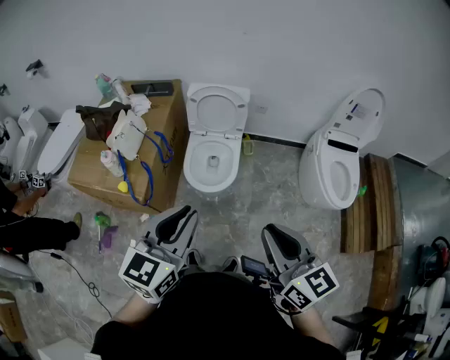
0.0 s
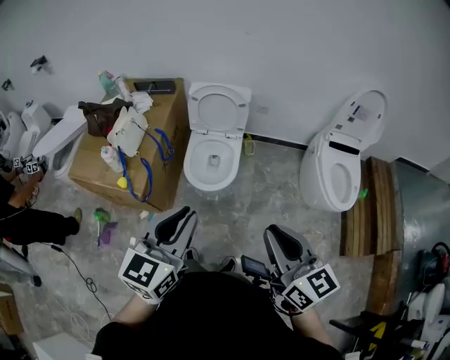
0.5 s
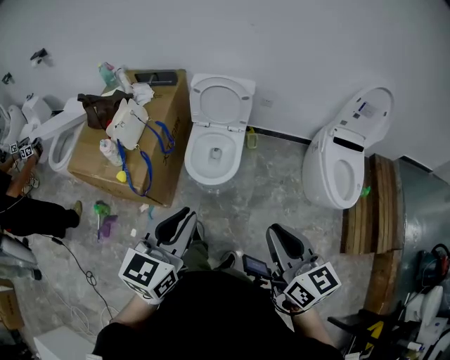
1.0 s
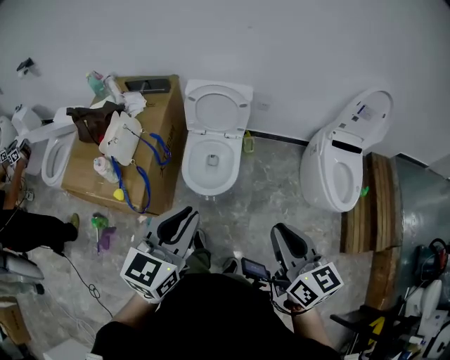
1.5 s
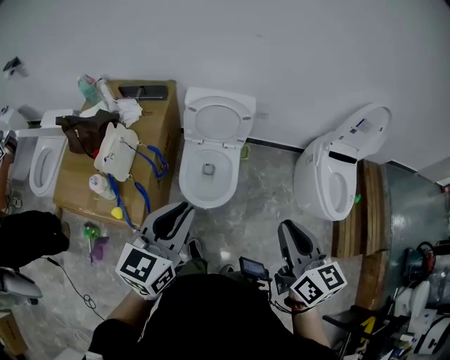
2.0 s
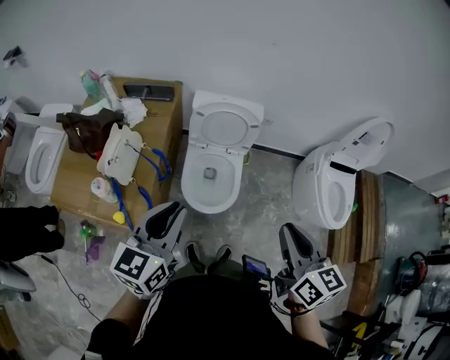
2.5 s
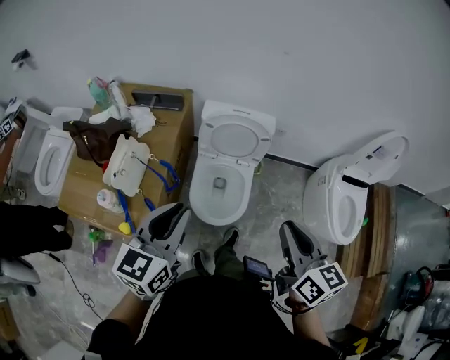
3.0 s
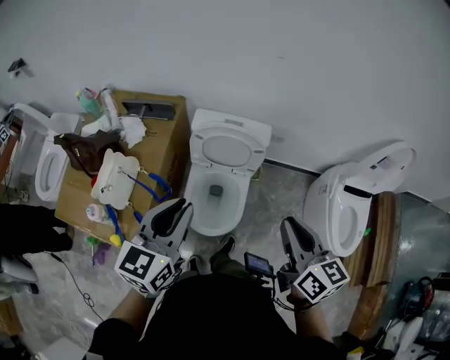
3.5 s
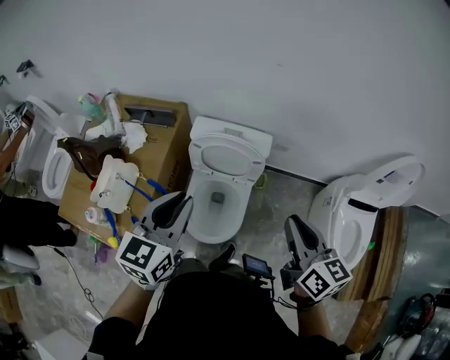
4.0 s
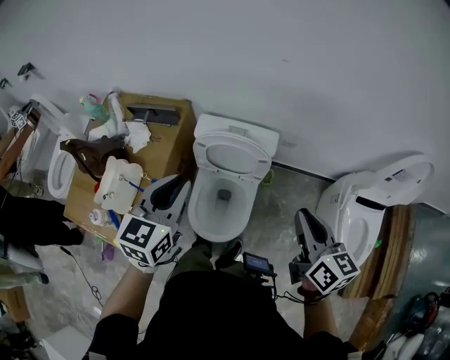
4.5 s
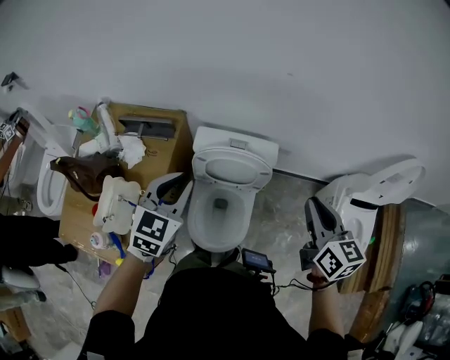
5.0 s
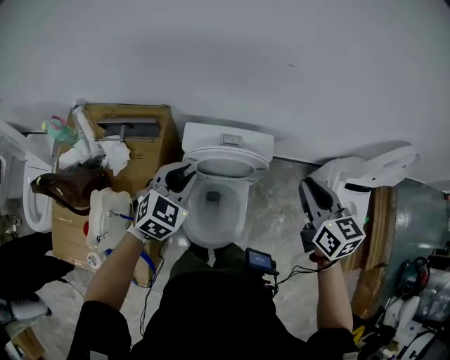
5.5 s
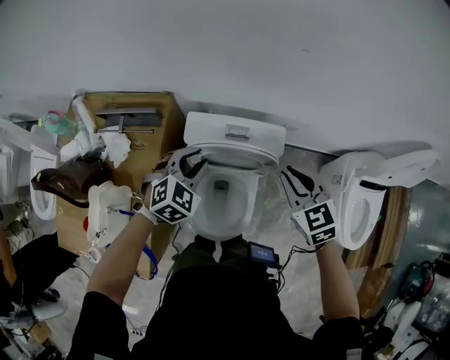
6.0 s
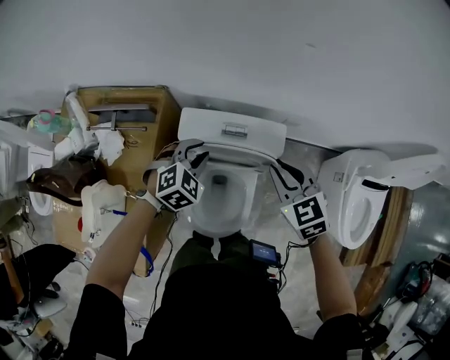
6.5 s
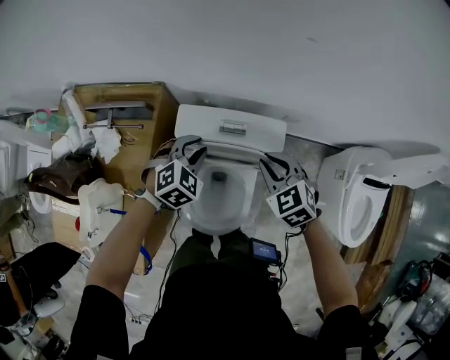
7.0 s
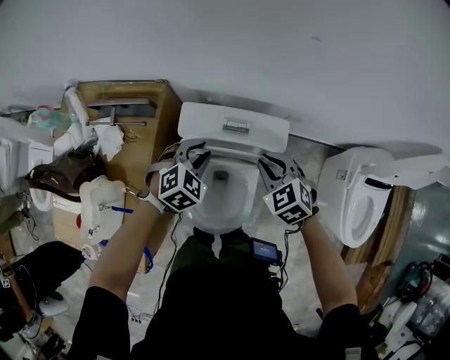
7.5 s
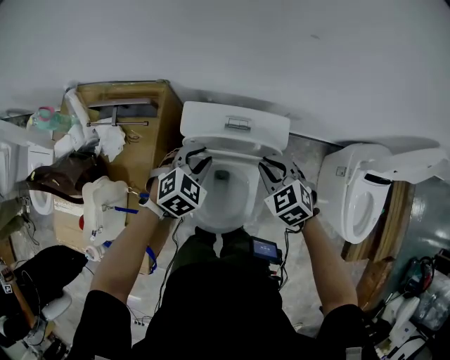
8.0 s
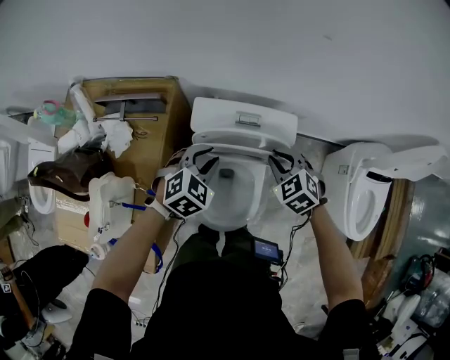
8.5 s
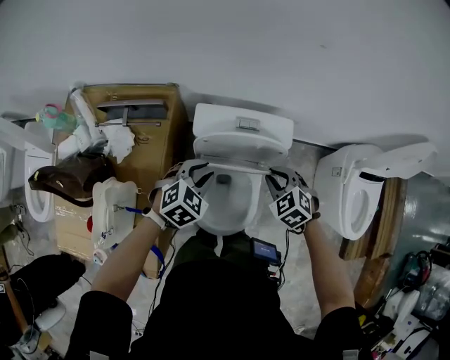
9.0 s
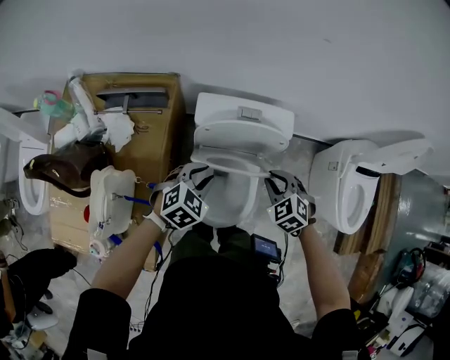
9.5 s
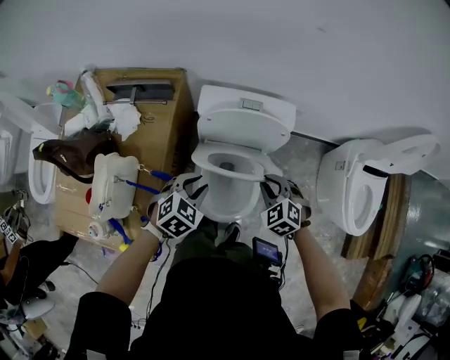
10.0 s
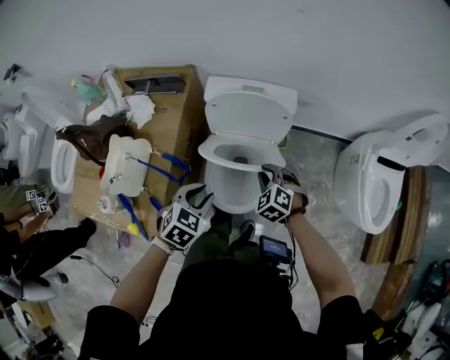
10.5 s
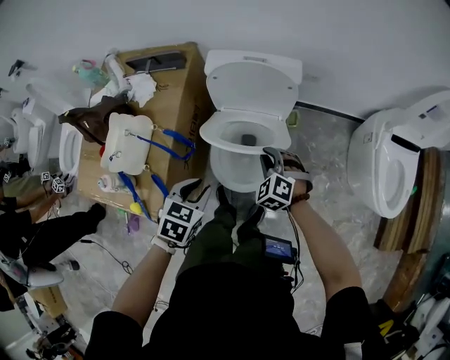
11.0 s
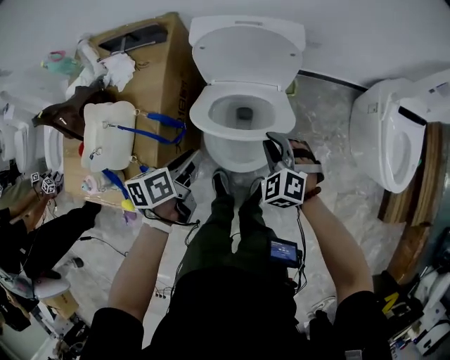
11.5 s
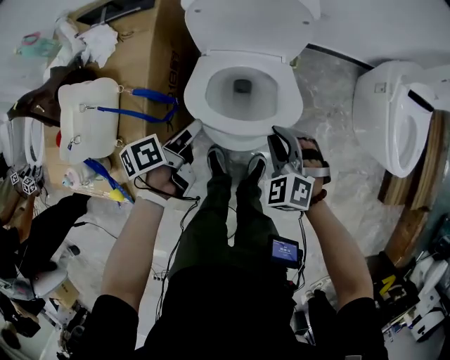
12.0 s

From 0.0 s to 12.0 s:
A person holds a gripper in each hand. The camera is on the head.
From 0.0 s to 2.0 s: The right gripper travels forward by approximately 20 cm. Meanwhile the left gripper heads forward and to the left, covering some 20 cm.
From 2.0 s to 4.0 s: The two grippers go about 25 cm forward.
From 4.0 s to 6.0 s: Both grippers travel together forward and downward, about 30 cm. The right gripper swivels roughly 40 degrees. The left gripper turns by about 50 degrees.
From 6.0 s to 8.0 s: The left gripper is displaced downward by some 5 cm, while the right gripper is displaced downward by roughly 10 cm.
From 8.0 s to 10.0 s: The grippers both shift backward by roughly 15 cm.
From 10.0 s to 12.0 s: The right gripper travels backward and downward by about 15 cm. The left gripper is displaced downward and backward by some 15 cm, and rolls counterclockwise, seen from behind, by roughly 80 degrees.

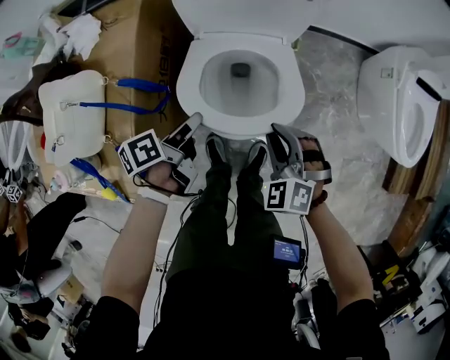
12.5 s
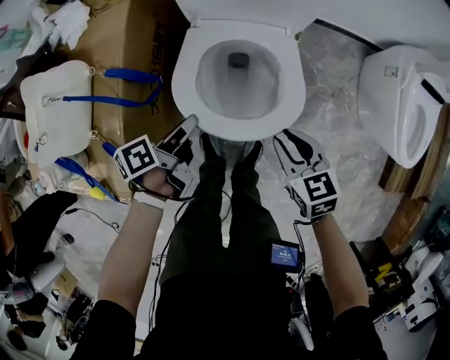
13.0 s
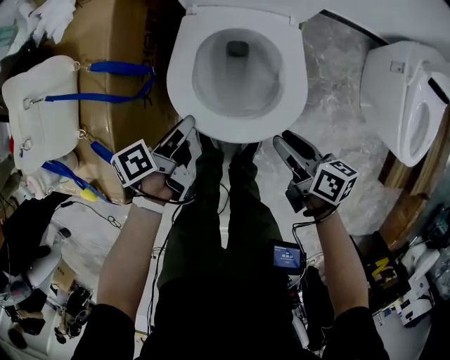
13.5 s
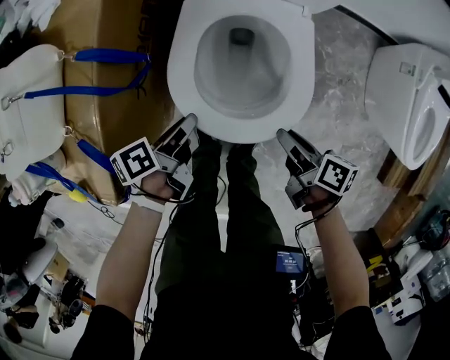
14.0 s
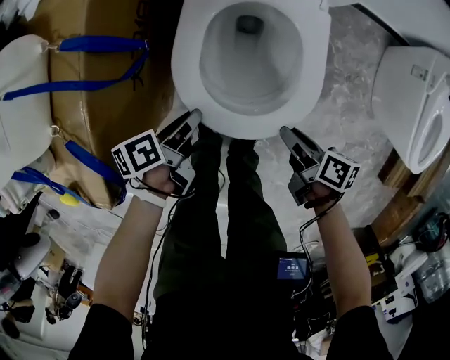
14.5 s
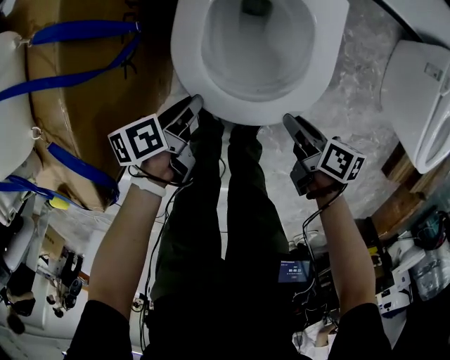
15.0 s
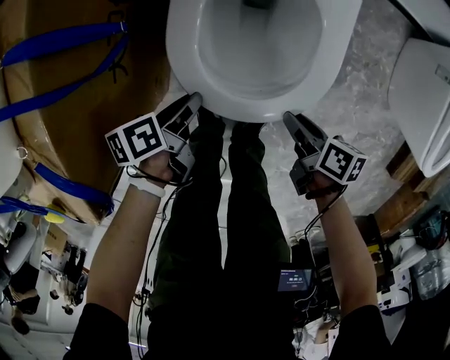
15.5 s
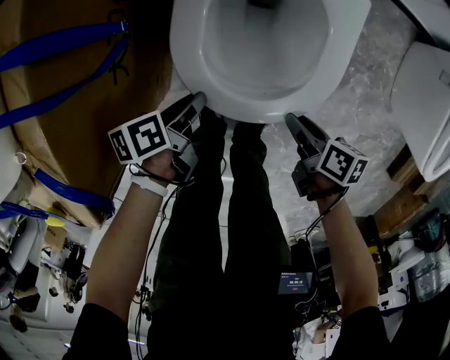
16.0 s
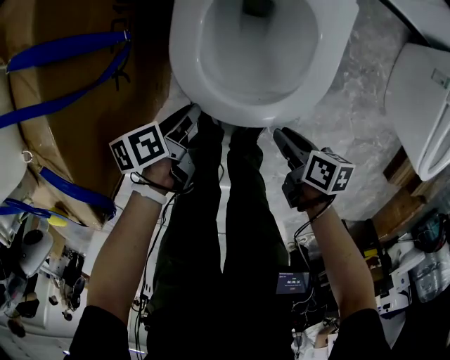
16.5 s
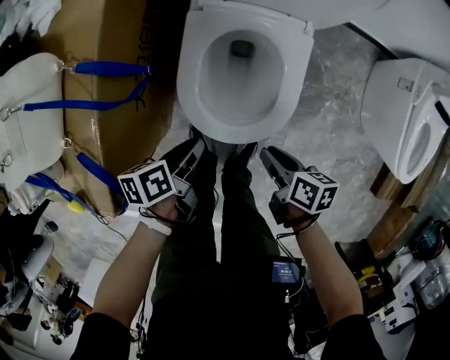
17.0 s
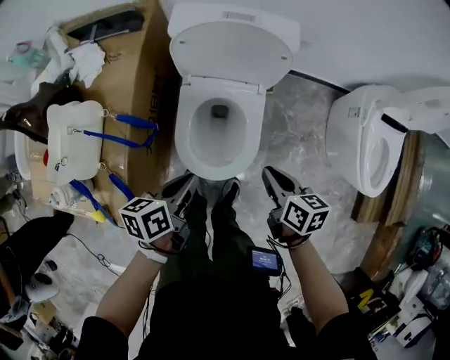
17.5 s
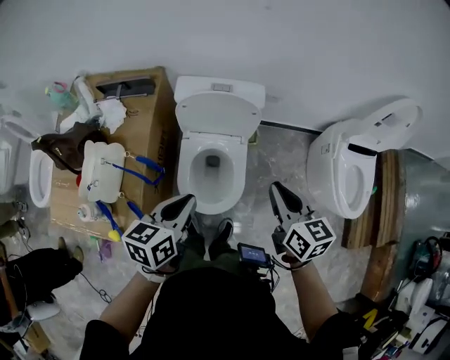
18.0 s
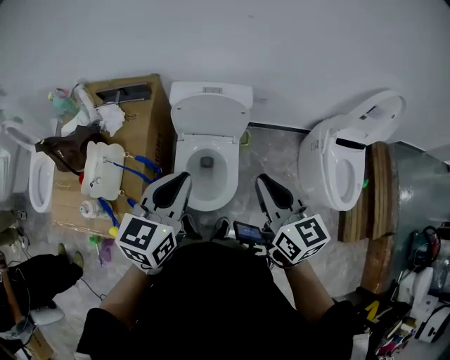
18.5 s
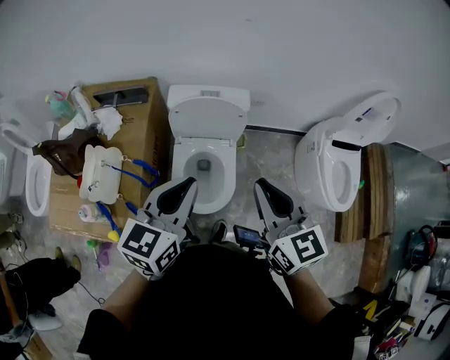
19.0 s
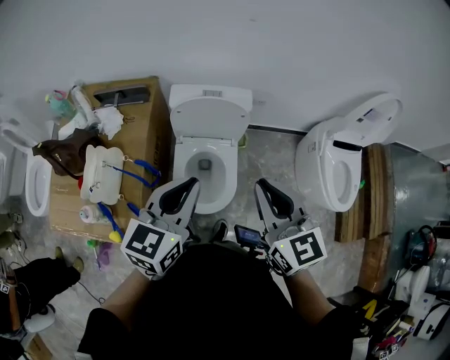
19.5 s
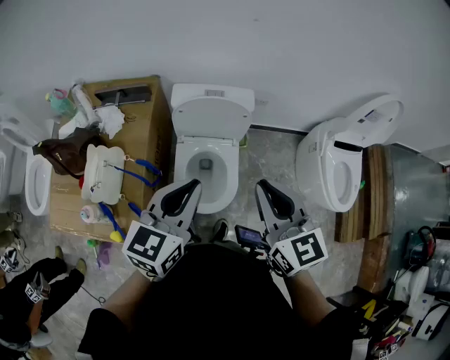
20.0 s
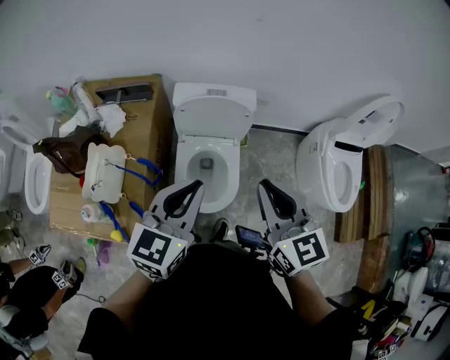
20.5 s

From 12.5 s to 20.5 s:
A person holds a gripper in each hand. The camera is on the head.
From 12.5 s to 14.5 s: The left gripper moves downward and backward, approximately 20 cm. The right gripper moves downward, about 20 cm, and rolls clockwise, seen from behind, by about 100 degrees.
From 14.5 s to 16.5 s: The two grippers go approximately 10 cm downward.
From 16.5 s to 18.5 s: The two grippers go some 70 cm upward. The right gripper tilts its fingers about 40 degrees upward, and closes. Meanwhile the left gripper rolls clockwise, seen from behind, by roughly 70 degrees.
From 18.5 s to 20.5 s: The grippers make only small movements.

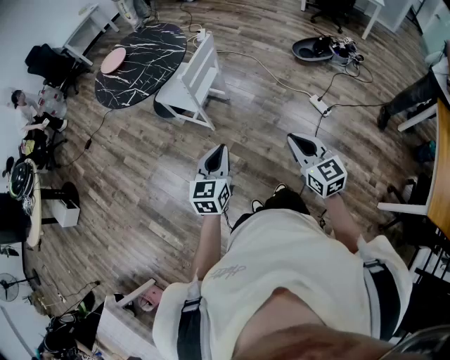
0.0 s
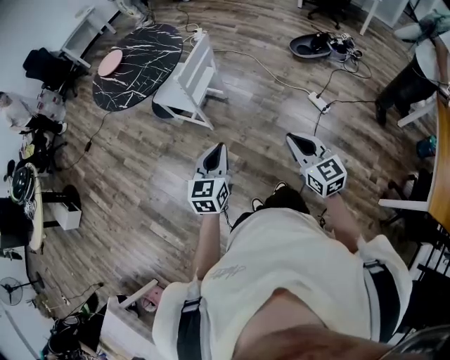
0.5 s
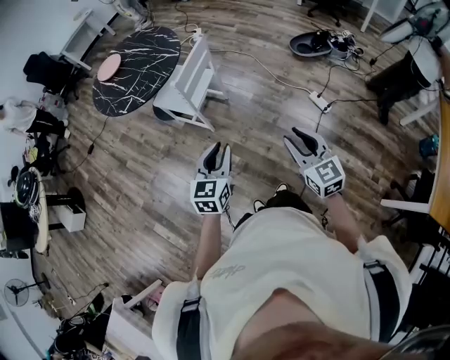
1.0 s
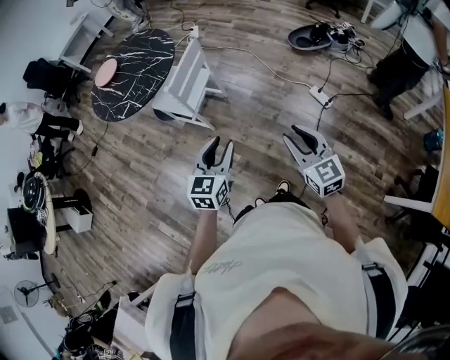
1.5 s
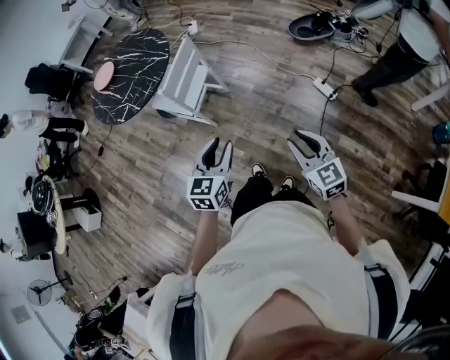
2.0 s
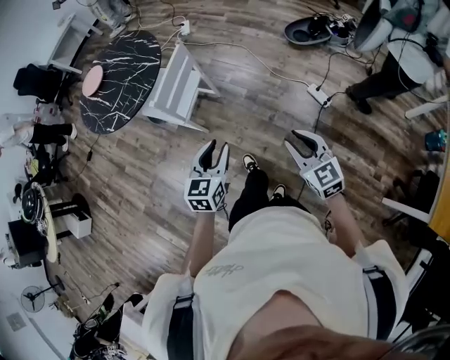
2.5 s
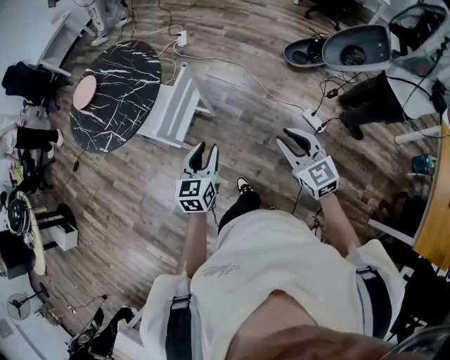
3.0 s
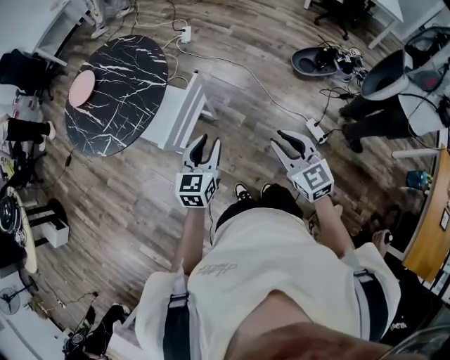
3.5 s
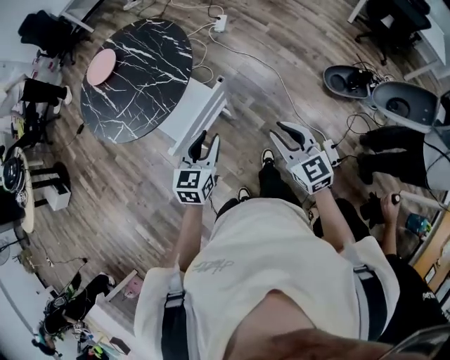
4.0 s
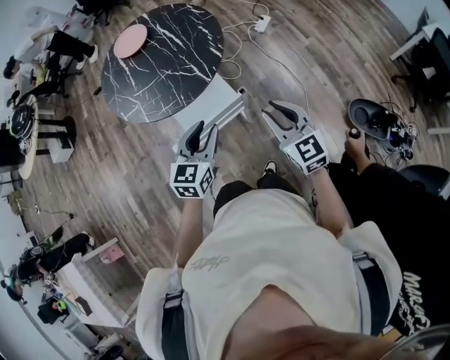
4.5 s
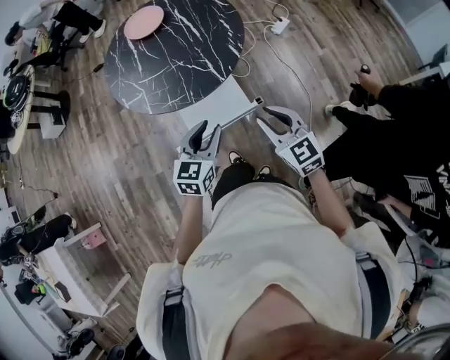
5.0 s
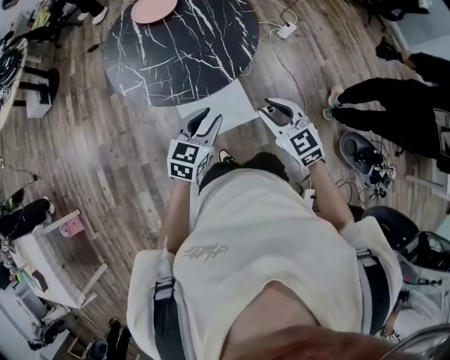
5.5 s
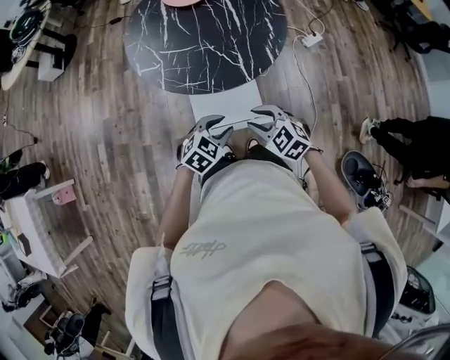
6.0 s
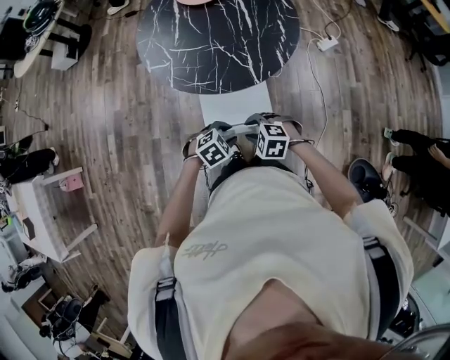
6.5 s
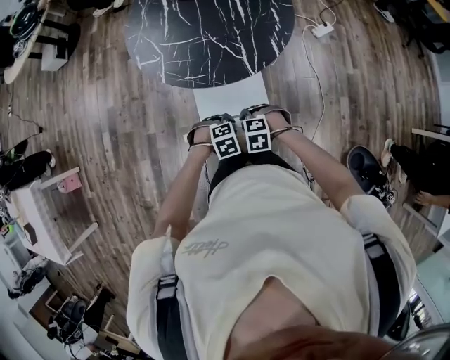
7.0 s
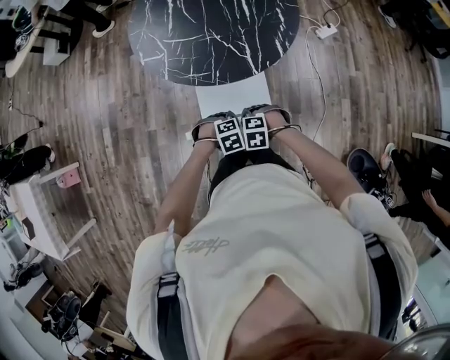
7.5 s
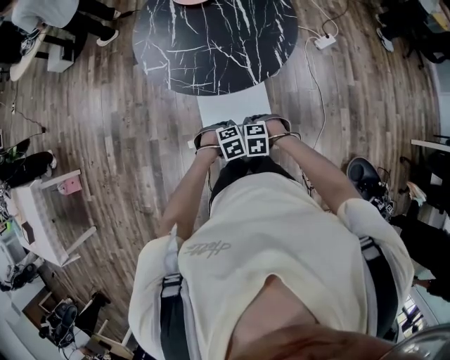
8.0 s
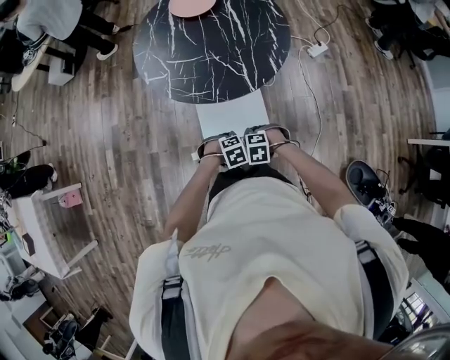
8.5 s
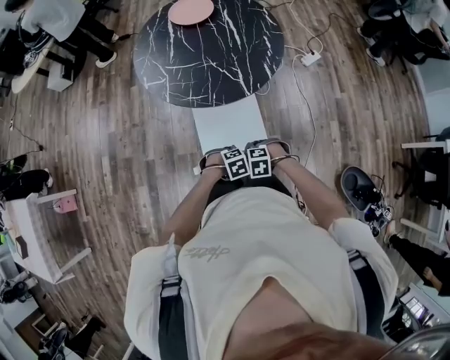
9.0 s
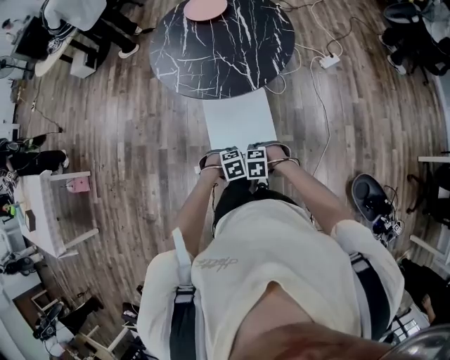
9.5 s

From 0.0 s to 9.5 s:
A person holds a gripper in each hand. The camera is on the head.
From 0.0 s to 2.0 s: The left gripper moves to the right and forward, approximately 15 cm, and opens up, while the right gripper shifts roughly 10 cm to the right, and opens.
From 2.0 s to 4.0 s: Both grippers are carried forward, about 50 cm.
From 4.0 s to 5.5 s: The right gripper shifts by roughly 25 cm, and turns by some 40 degrees, while the left gripper ends up approximately 20 cm from where it was.
From 5.5 s to 7.5 s: The two grippers go approximately 25 cm downward. The left gripper tips its fingers downward by some 50 degrees; the right gripper angles its fingers downward, by approximately 50 degrees.
From 7.5 s to 9.5 s: The right gripper shifts by some 10 cm, while the left gripper shifts by some 10 cm.
